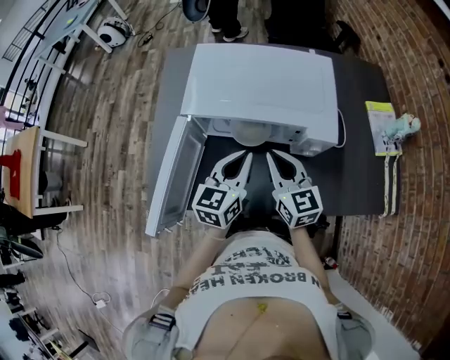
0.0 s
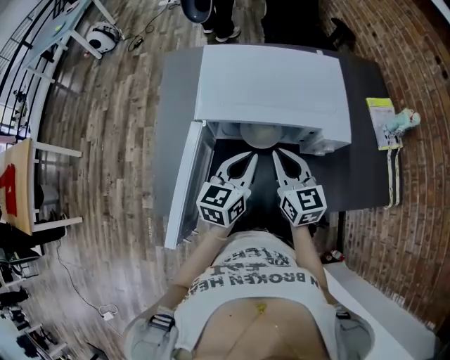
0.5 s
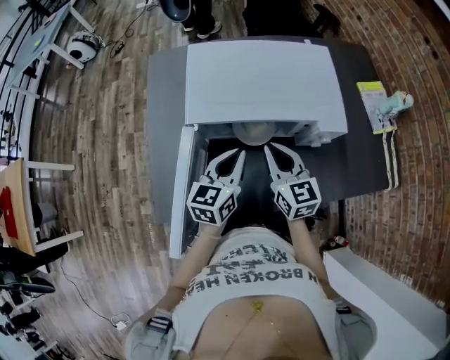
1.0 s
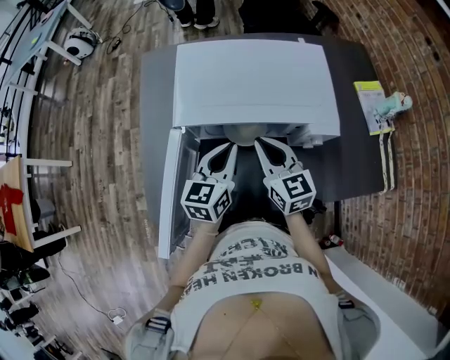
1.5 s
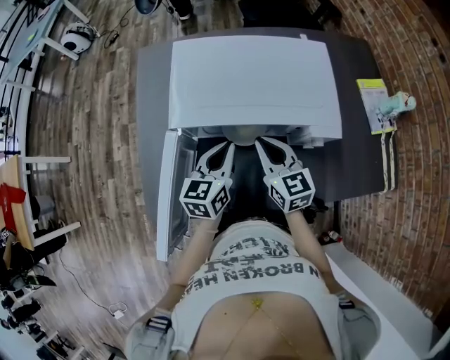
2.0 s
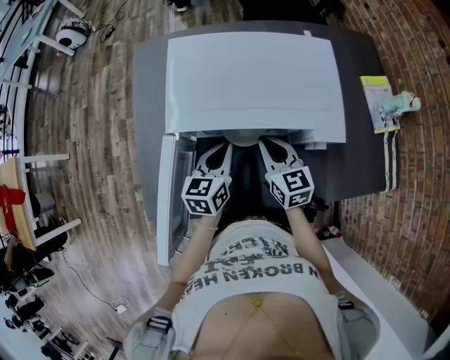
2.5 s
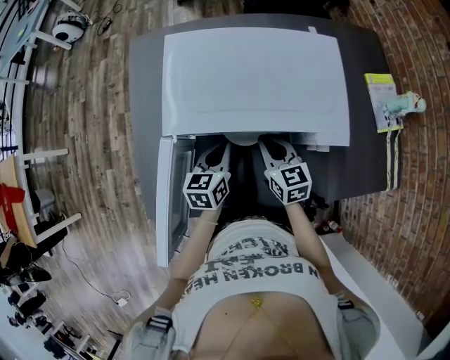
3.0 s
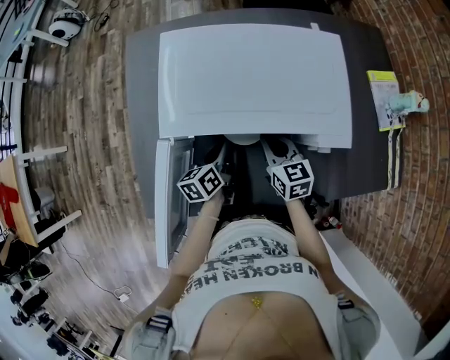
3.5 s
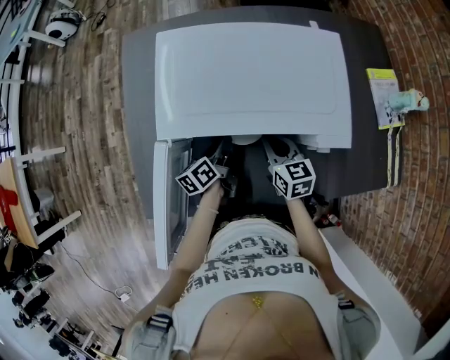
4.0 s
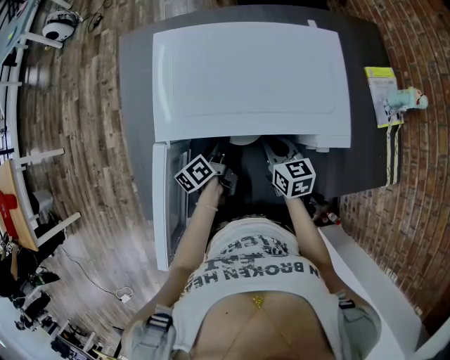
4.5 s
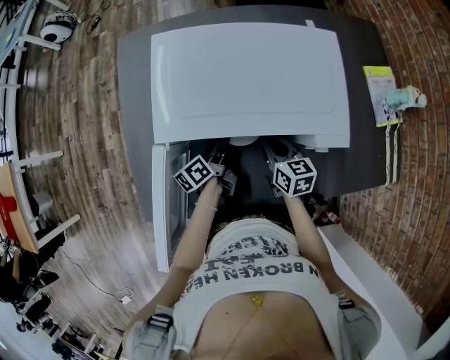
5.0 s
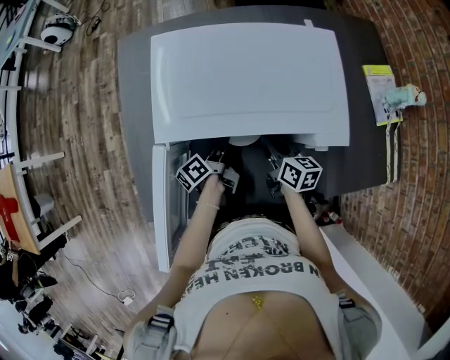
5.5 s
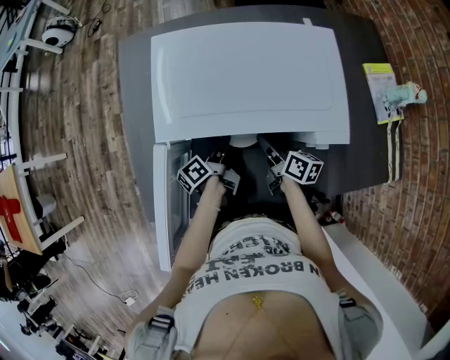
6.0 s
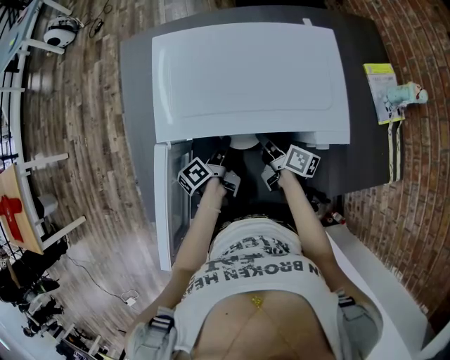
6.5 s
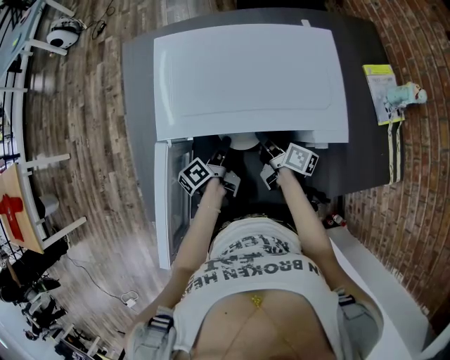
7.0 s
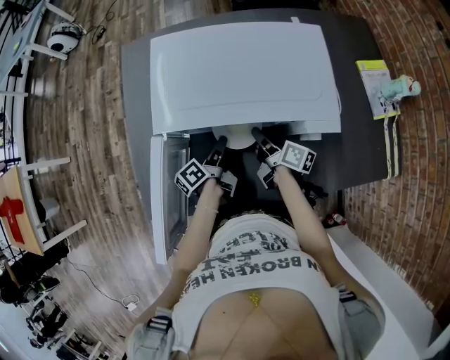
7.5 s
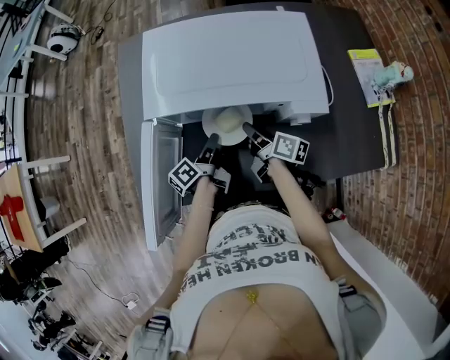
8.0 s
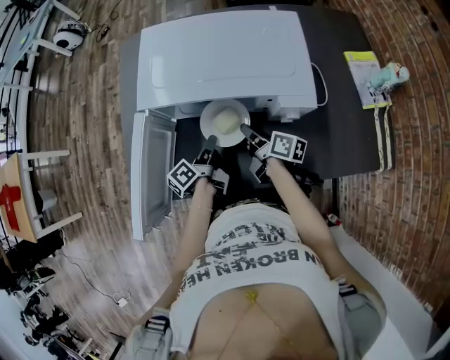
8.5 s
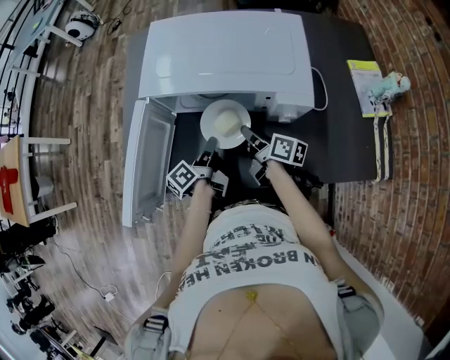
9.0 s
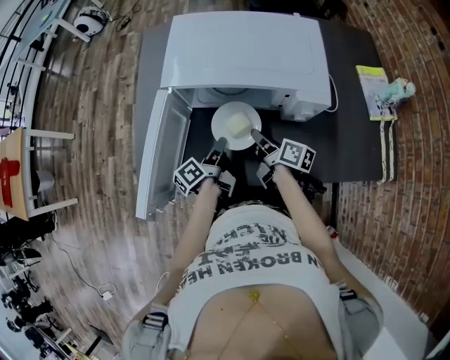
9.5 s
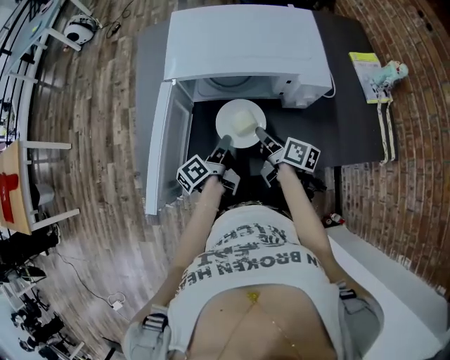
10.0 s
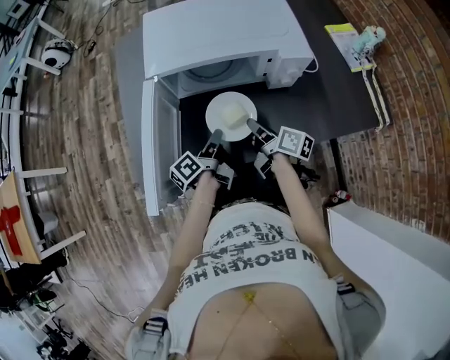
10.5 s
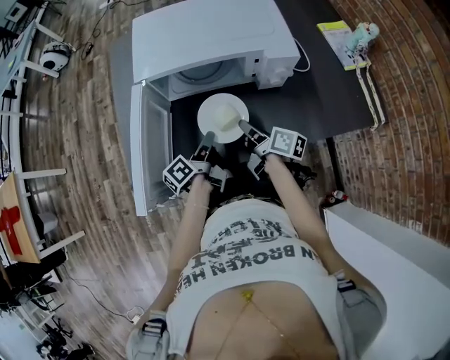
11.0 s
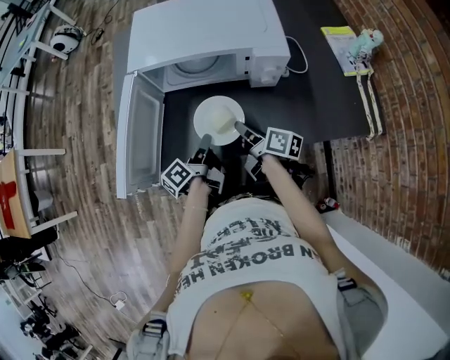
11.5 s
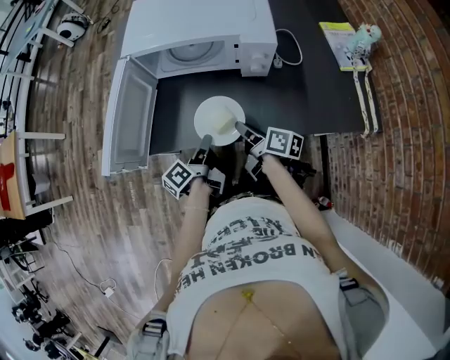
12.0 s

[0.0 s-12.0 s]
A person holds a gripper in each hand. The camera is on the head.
0.0 to 2.0 s: The grippers both shift forward by roughly 5 cm.
2.0 to 4.0 s: Both grippers travel together downward, about 15 cm. The left gripper twists some 40 degrees counterclockwise, seen from behind, and opens its fingers.
4.0 to 6.0 s: The left gripper turns by some 20 degrees, and closes. The right gripper swivels some 40 degrees, and opens.
6.0 to 8.0 s: The right gripper closes; the left gripper shifts approximately 5 cm backward.
8.0 to 10.0 s: The two grippers go some 10 cm backward.
10.0 to 12.0 s: Both grippers move backward and to the right, approximately 15 cm.

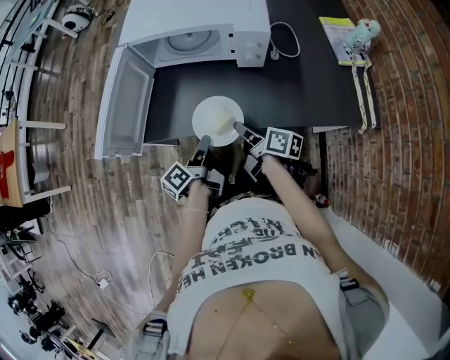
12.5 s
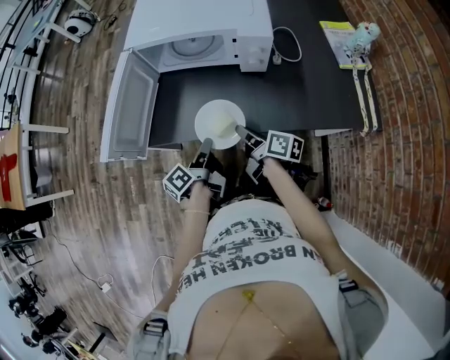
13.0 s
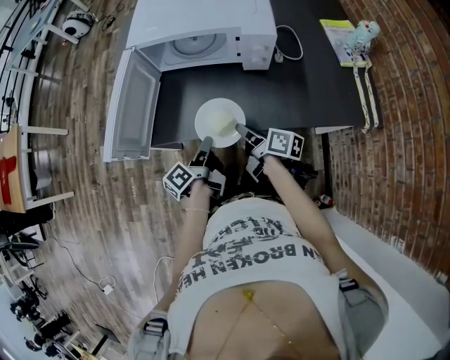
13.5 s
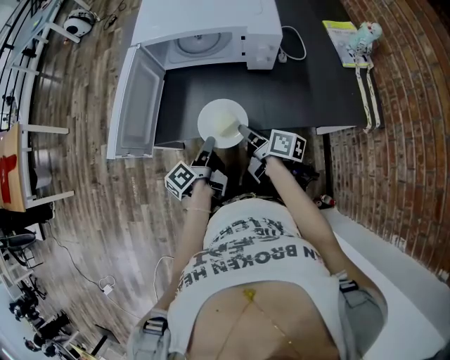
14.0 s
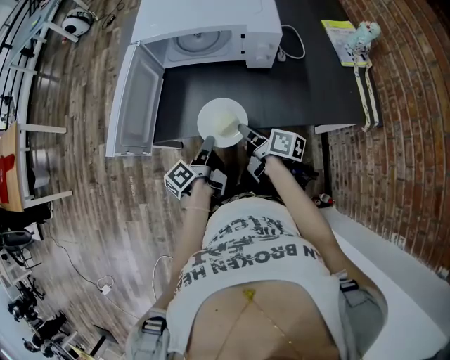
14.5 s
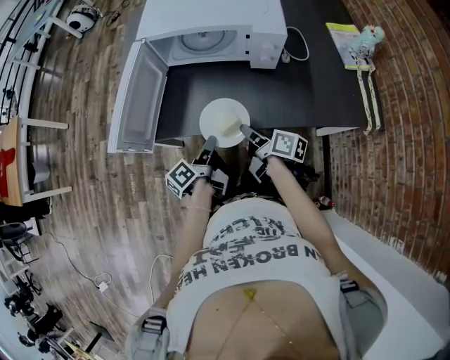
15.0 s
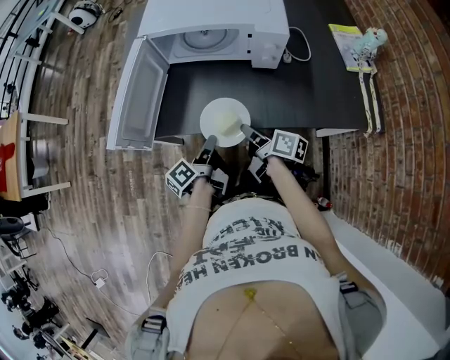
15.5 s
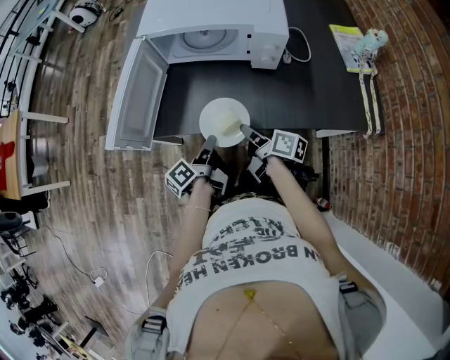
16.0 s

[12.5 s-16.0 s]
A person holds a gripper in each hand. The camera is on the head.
12.5 to 14.5 s: There are only small adjustments of the grippers.
14.5 to 16.0 s: Both grippers stay put.

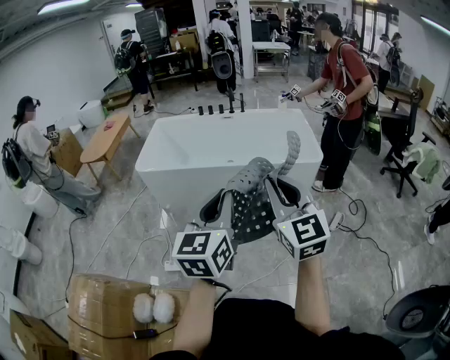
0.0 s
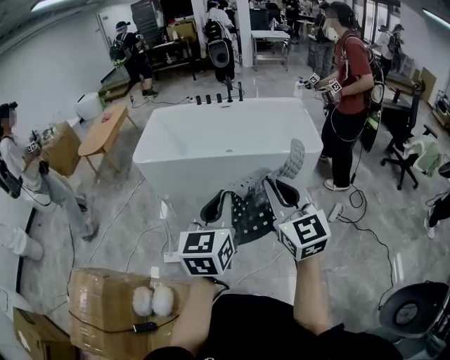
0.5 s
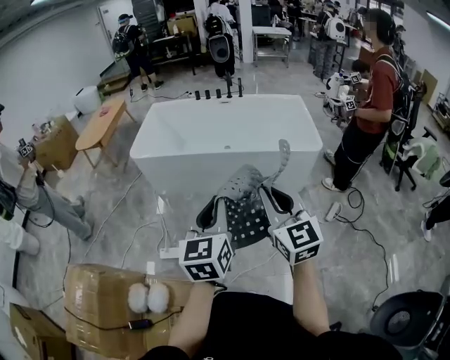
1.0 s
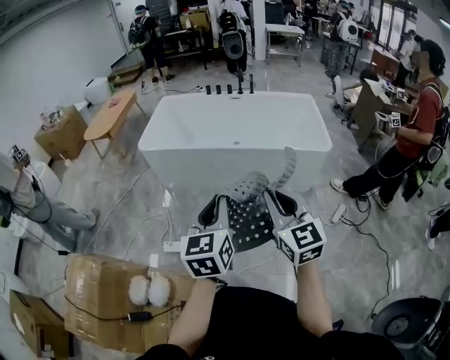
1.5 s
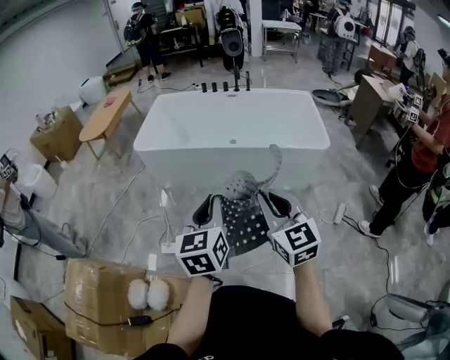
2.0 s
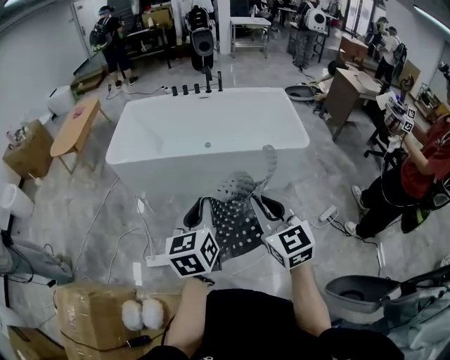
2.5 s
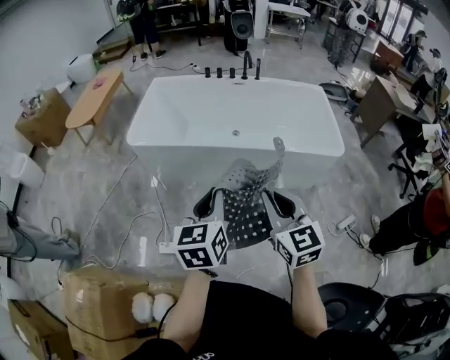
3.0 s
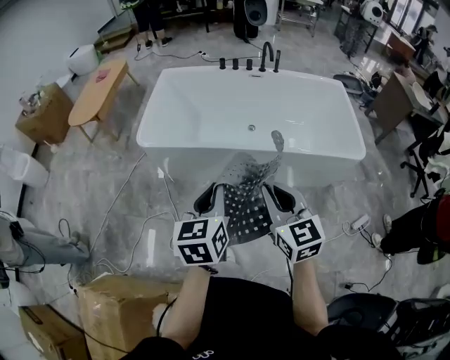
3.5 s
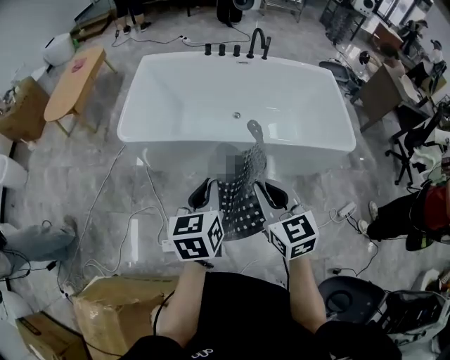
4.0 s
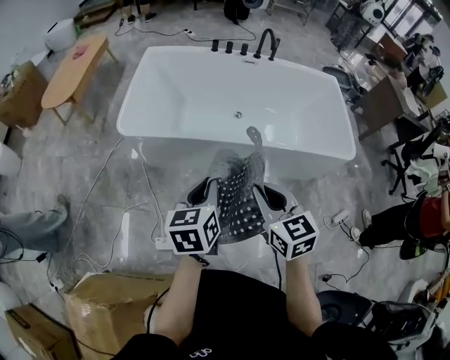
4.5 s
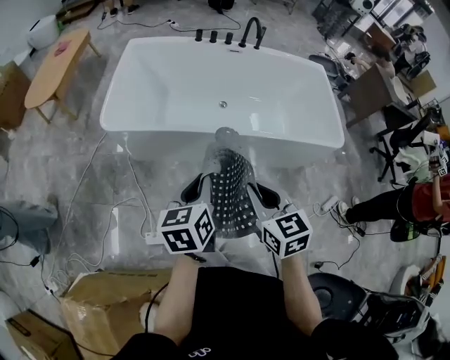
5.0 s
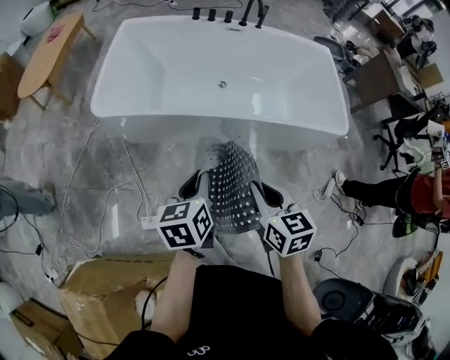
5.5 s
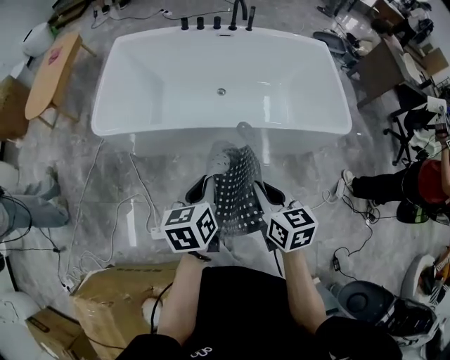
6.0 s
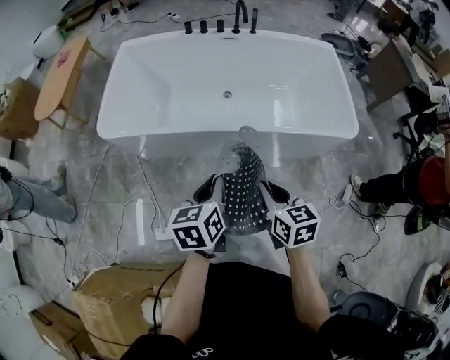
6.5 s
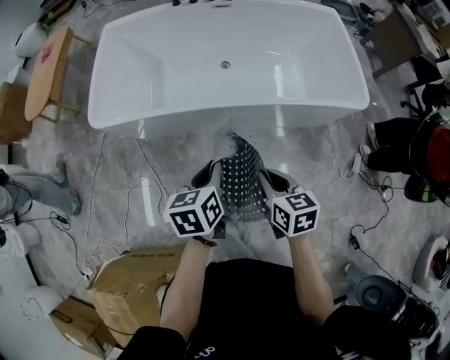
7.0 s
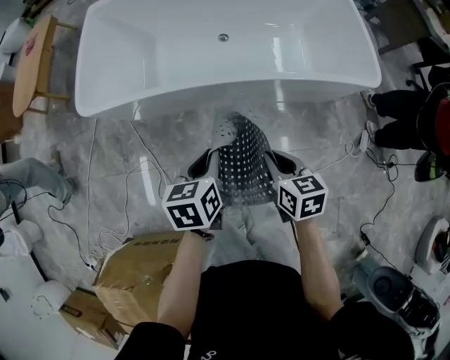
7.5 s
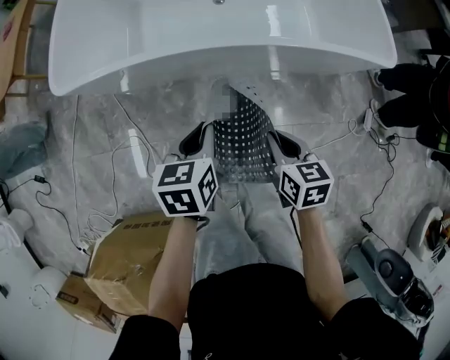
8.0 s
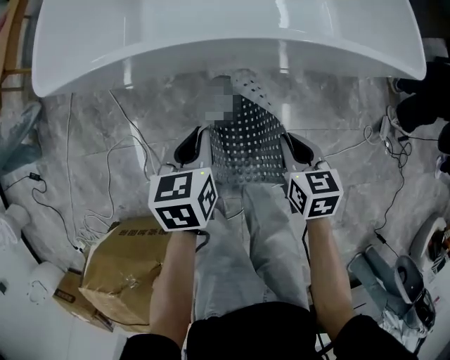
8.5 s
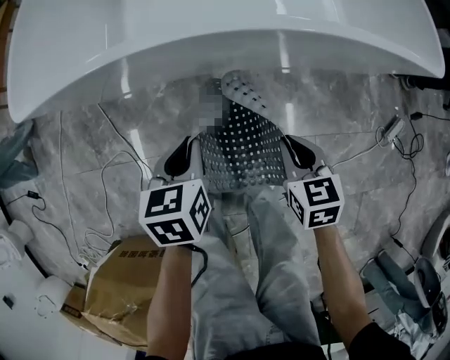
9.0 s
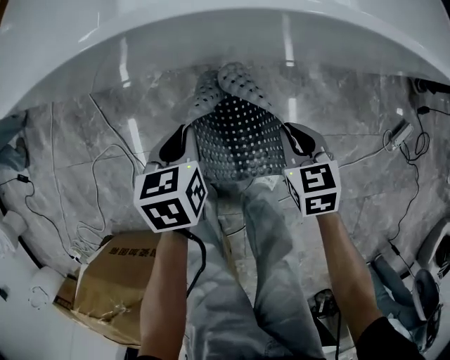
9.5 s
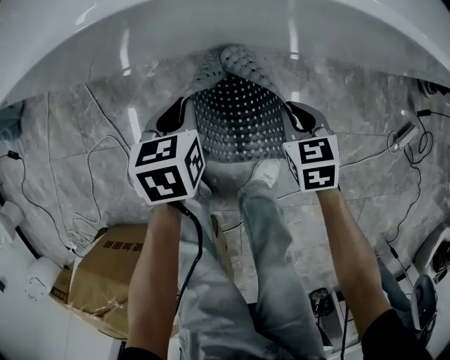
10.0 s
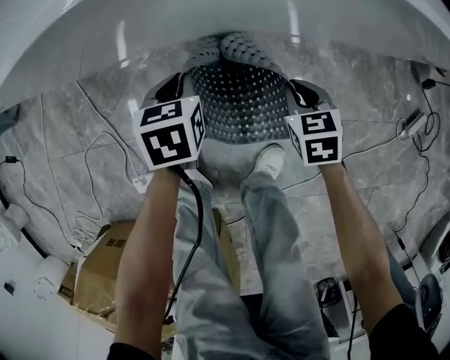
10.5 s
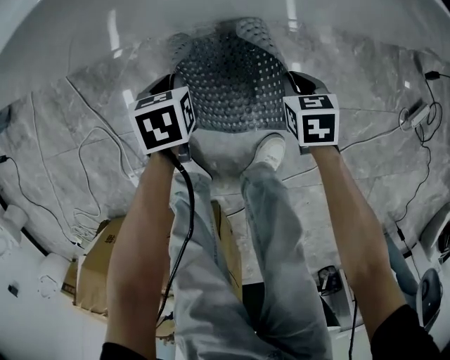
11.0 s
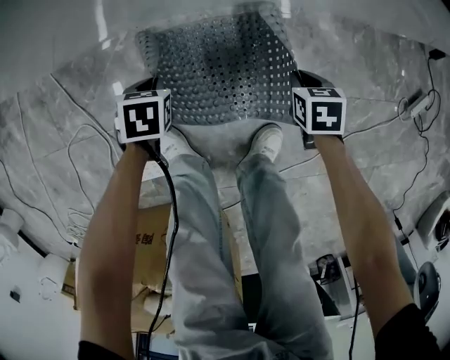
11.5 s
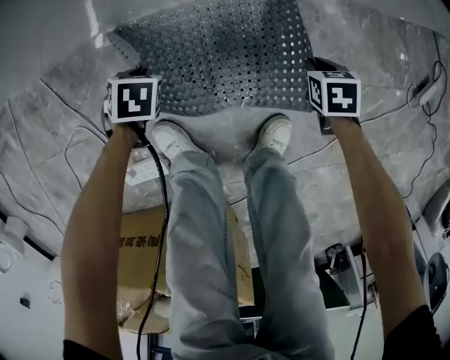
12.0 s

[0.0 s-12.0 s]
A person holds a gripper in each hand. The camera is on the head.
0.0 to 2.0 s: Both grippers move downward, some 10 cm.
2.0 to 4.0 s: Both grippers move forward and to the left, some 35 cm.
4.0 to 6.0 s: The two grippers go some 15 cm to the right and downward. The right gripper swivels roughly 30 degrees.
6.0 to 8.0 s: Both grippers travel together downward, roughly 20 cm.
8.0 to 10.0 s: Both grippers move downward, approximately 35 cm. The right gripper changes its angle by roughly 20 degrees.
10.0 to 12.0 s: The two grippers go roughly 25 cm downward. The right gripper turns by approximately 30 degrees. Meanwhile the left gripper points its fingers roughly 30 degrees further downward.
